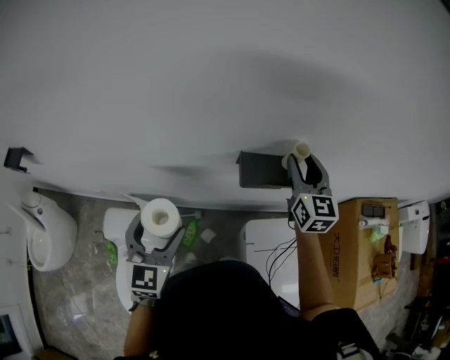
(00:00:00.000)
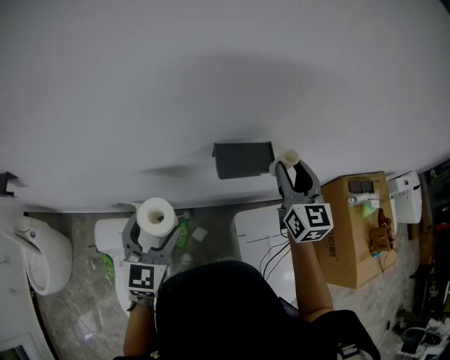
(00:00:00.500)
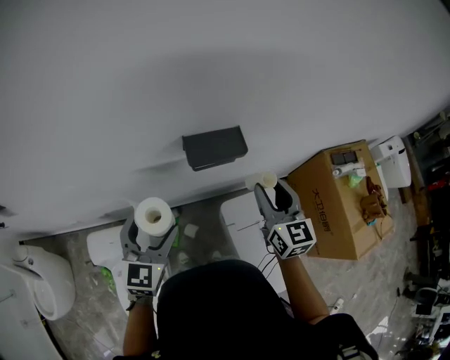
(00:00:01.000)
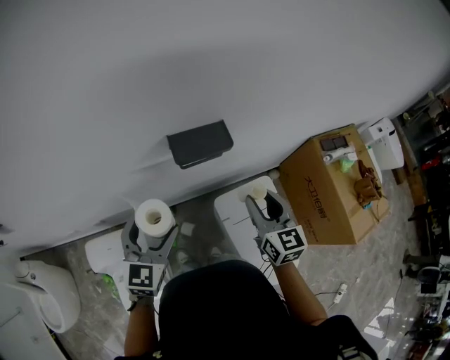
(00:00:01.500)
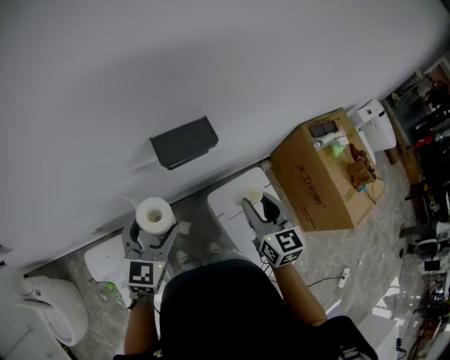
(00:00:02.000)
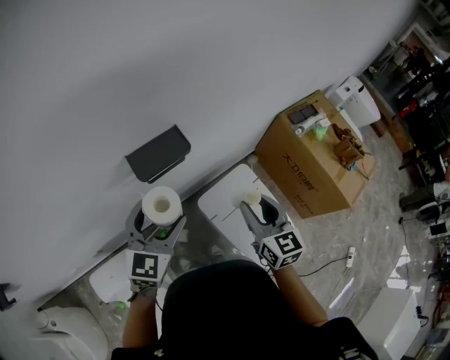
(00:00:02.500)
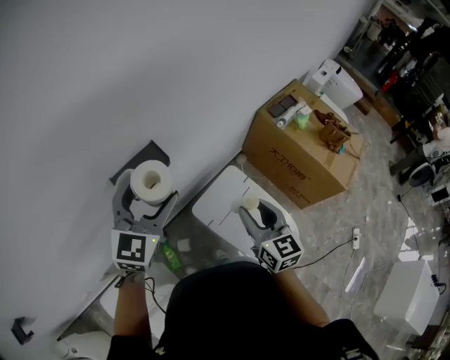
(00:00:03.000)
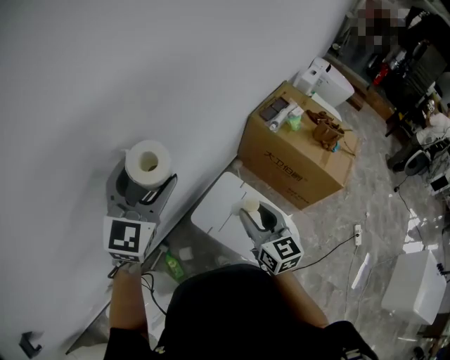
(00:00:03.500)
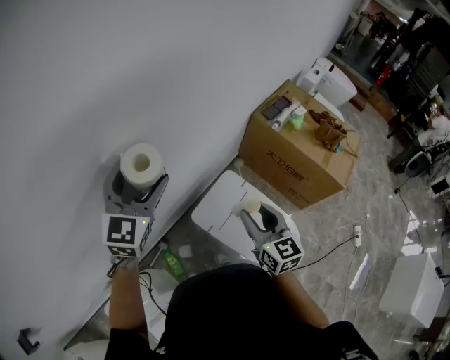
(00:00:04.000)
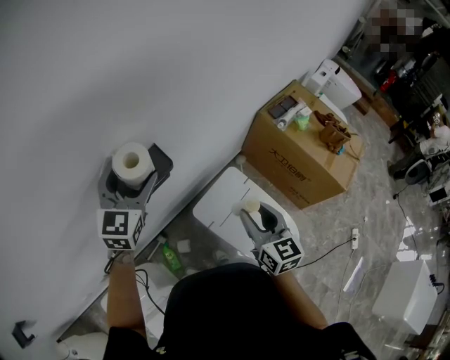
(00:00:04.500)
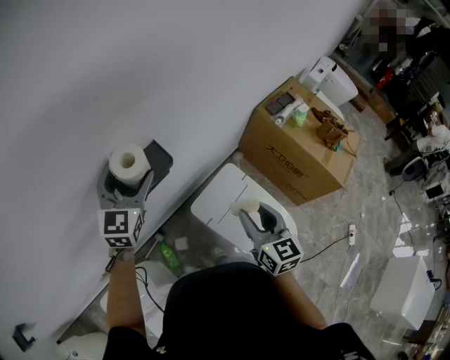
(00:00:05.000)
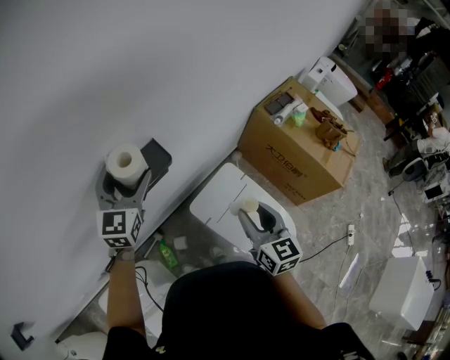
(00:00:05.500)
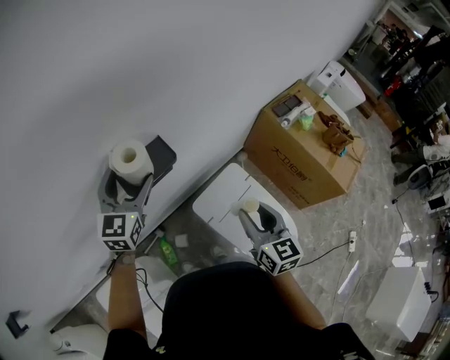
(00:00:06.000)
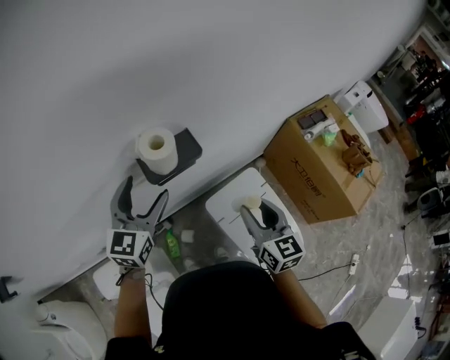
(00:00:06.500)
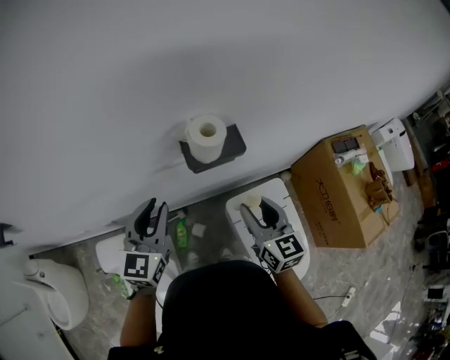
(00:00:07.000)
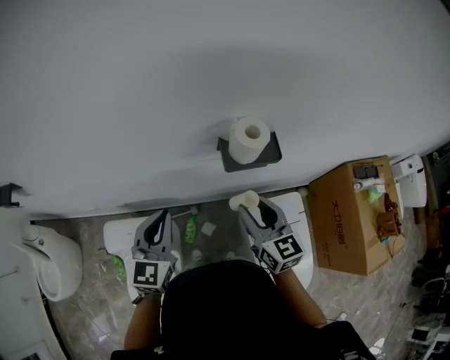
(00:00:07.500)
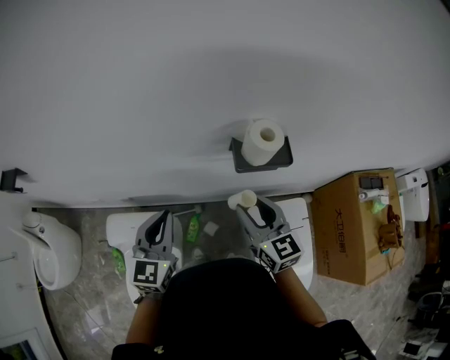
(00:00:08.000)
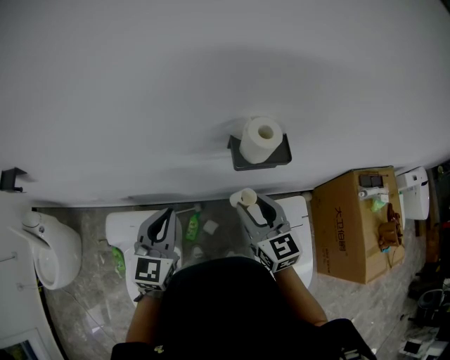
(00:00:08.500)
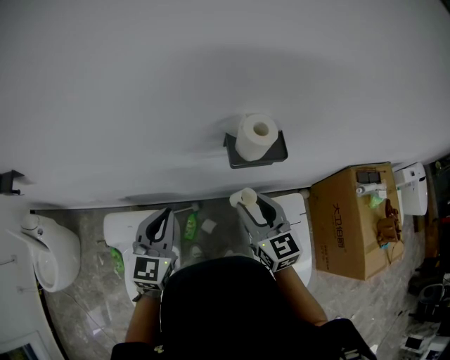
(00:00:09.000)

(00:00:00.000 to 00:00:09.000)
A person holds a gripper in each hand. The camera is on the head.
00:00:00.000 - 00:00:02.000: The right gripper is displaced backward and to the right by about 25 cm. Meanwhile the left gripper travels to the right by some 15 cm, and swivels some 30 degrees.
00:00:02.000 - 00:00:04.500: The right gripper travels to the right by some 10 cm, while the left gripper travels forward and upward by approximately 20 cm, and changes its angle by approximately 20 degrees.
00:00:04.500 - 00:00:07.000: The left gripper shifts by roughly 20 cm, rotates roughly 30 degrees, and closes, while the right gripper changes place by approximately 15 cm, and rotates roughly 30 degrees.
00:00:07.000 - 00:00:09.000: Both grippers move to the left, about 10 cm.

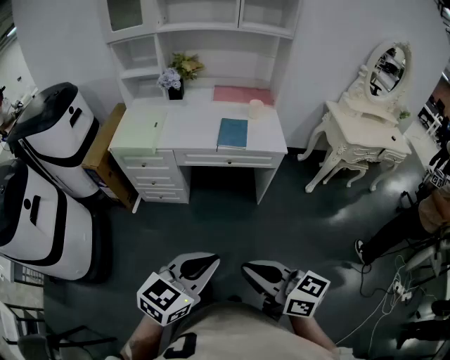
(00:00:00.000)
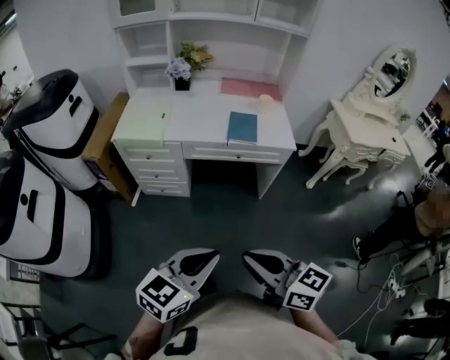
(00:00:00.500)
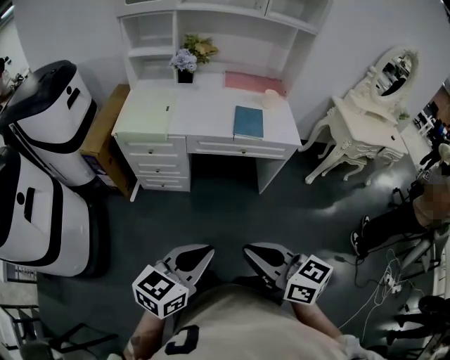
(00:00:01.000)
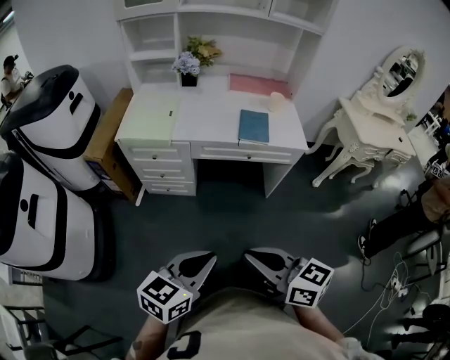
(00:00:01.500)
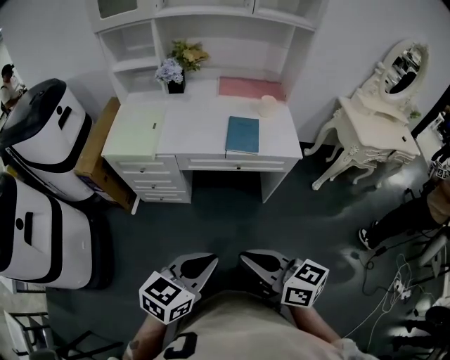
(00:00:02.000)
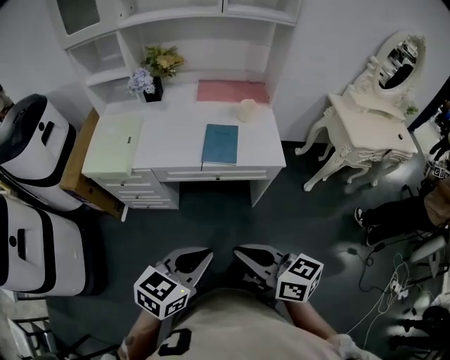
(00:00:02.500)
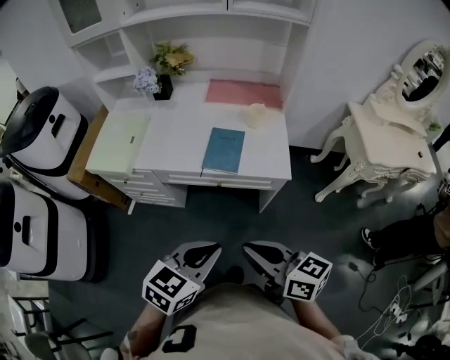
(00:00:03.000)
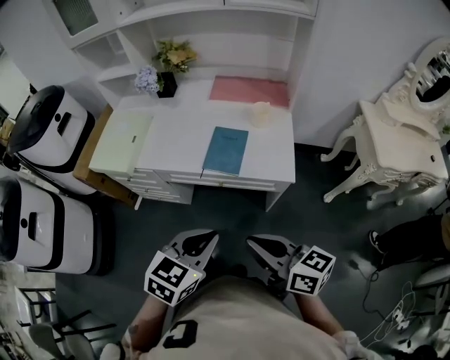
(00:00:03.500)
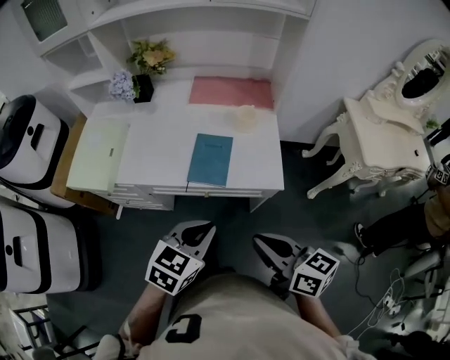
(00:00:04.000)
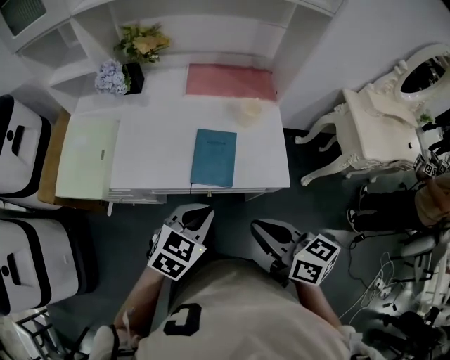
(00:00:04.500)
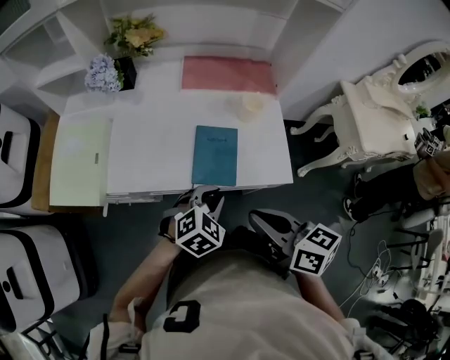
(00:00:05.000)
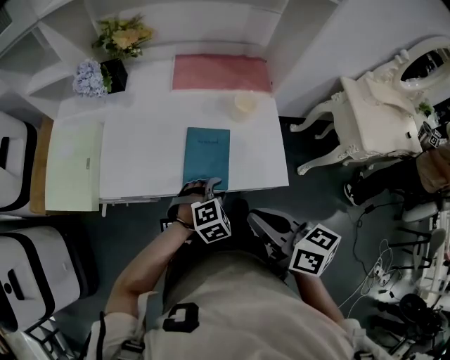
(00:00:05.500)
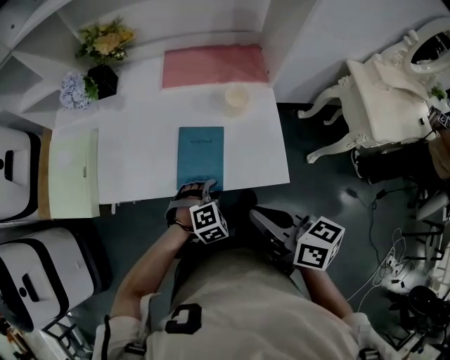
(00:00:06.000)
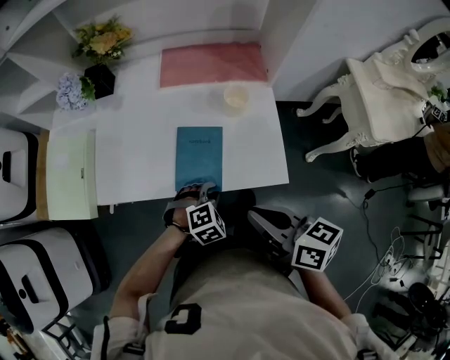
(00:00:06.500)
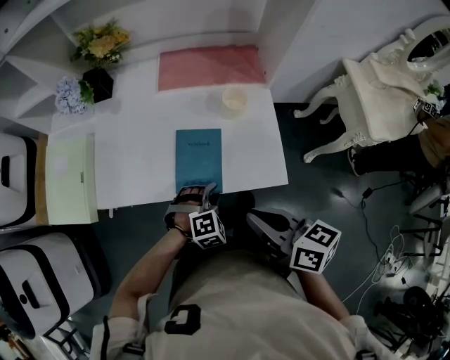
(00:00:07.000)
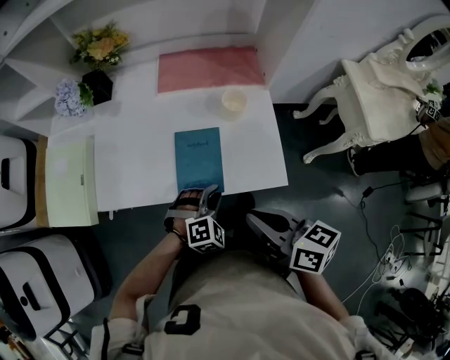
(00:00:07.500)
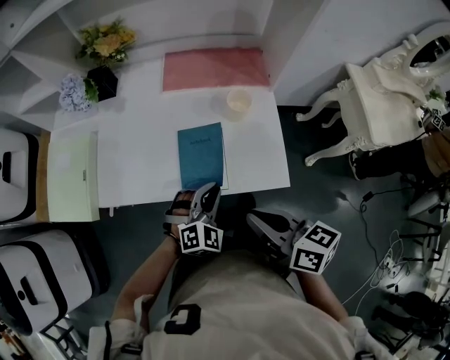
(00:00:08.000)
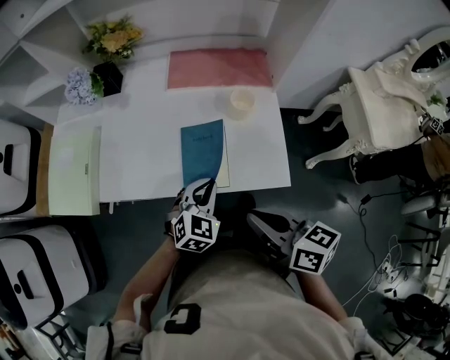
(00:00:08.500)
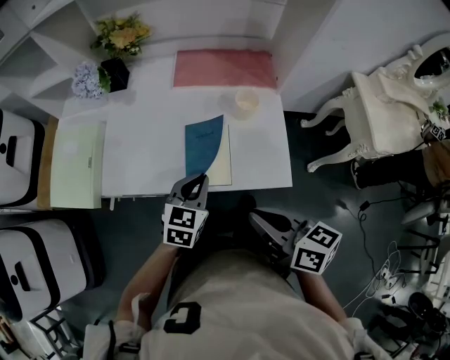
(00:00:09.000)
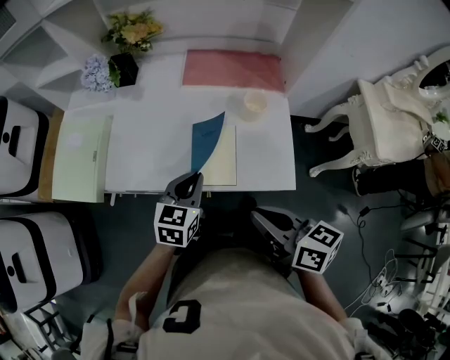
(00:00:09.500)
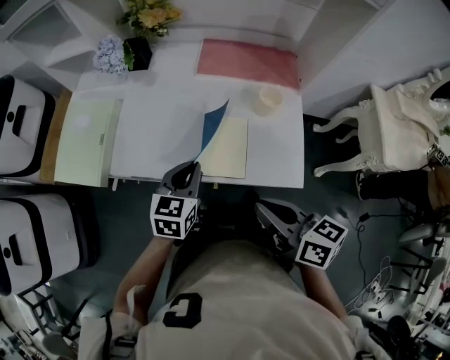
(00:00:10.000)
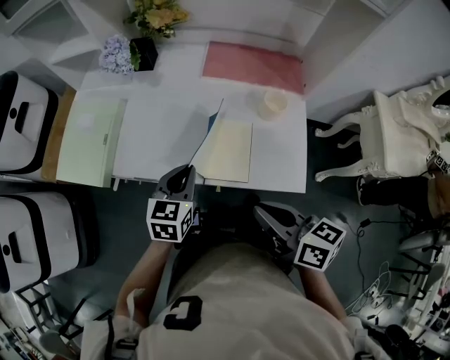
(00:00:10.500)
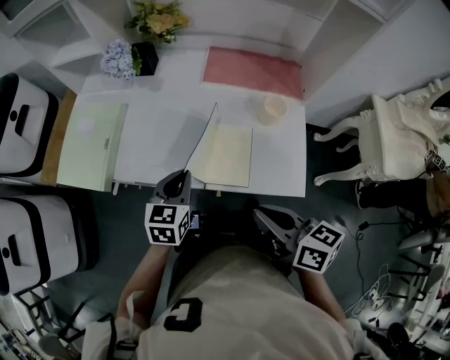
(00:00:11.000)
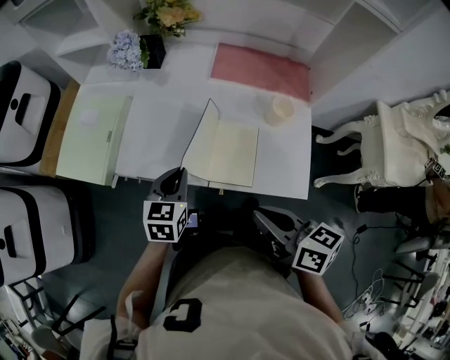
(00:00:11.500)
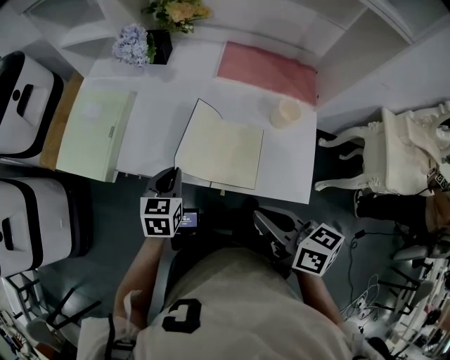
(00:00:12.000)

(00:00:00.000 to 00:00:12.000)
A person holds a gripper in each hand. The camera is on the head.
00:00:00.000 - 00:00:02.000: The right gripper heads forward, covering approximately 15 cm. Meanwhile the left gripper heads forward, downward and to the left, covering roughly 15 cm.
00:00:02.000 - 00:00:04.000: The grippers both shift forward and to the right by about 30 cm.
00:00:04.000 - 00:00:06.000: The left gripper heads downward and forward, covering approximately 25 cm, rolls clockwise, seen from behind, by approximately 50 degrees, and opens up; the right gripper heads forward, covering some 15 cm.
00:00:06.000 - 00:00:08.000: The left gripper moves upward, approximately 10 cm, and changes its angle by about 30 degrees.
00:00:08.000 - 00:00:10.000: The left gripper shifts about 10 cm to the left, and rotates around the line of its fingers by about 50 degrees, counterclockwise from behind.
00:00:10.000 - 00:00:12.000: The left gripper goes approximately 10 cm to the left.

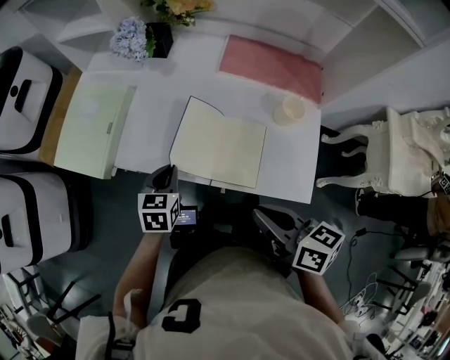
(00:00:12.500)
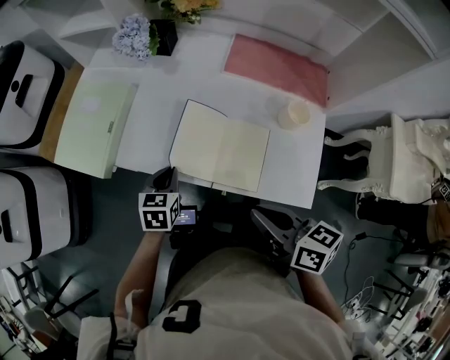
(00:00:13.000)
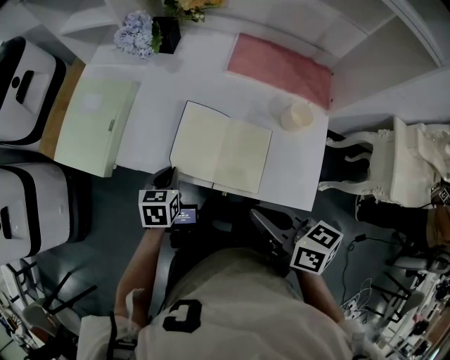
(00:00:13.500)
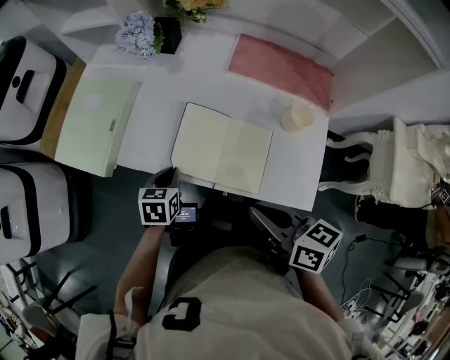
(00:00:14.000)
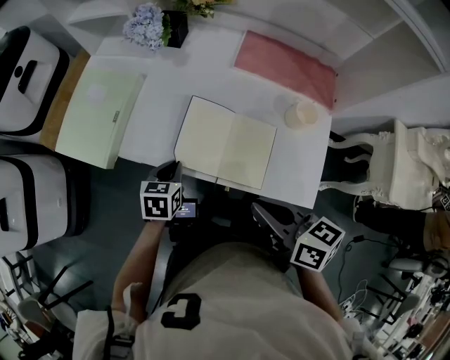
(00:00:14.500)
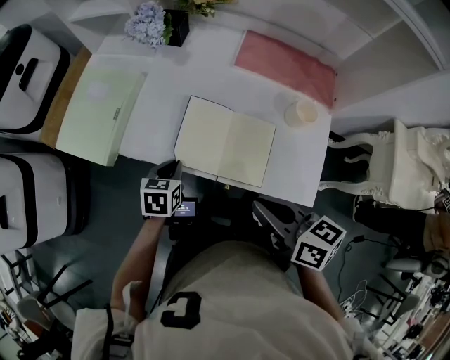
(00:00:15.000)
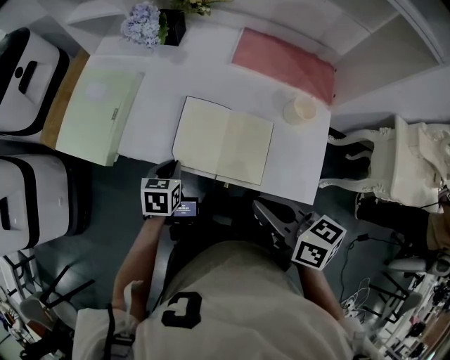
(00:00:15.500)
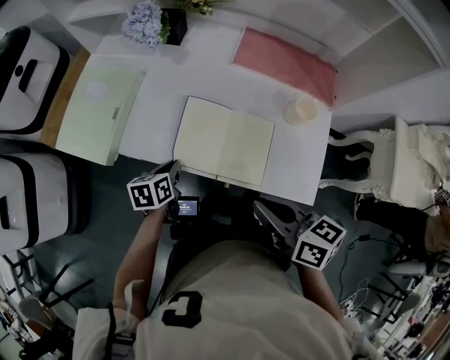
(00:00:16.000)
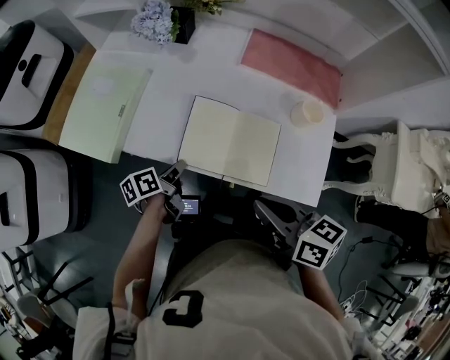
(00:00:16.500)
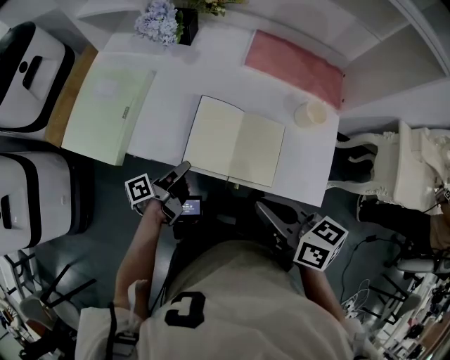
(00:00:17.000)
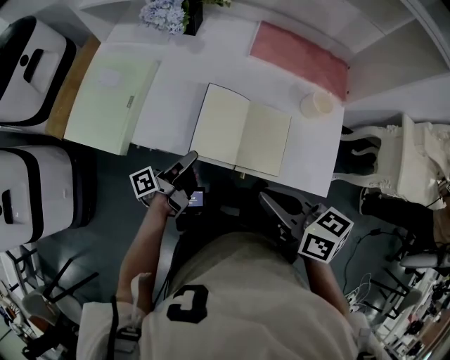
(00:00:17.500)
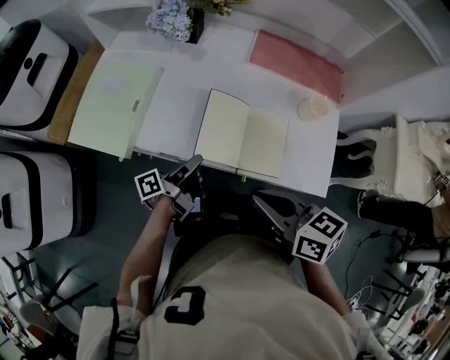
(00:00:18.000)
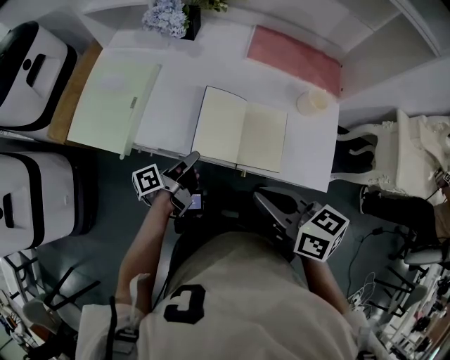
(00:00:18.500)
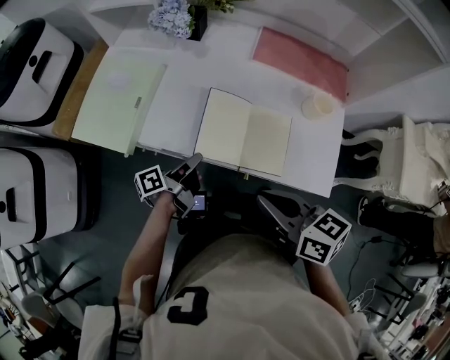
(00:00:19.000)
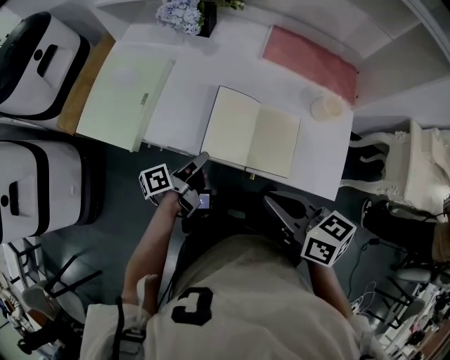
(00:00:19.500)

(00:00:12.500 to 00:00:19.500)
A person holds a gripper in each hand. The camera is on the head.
00:00:12.500 - 00:00:14.500: The grippers stay close to where they were, moving slightly.
00:00:14.500 - 00:00:16.000: The left gripper changes its angle by about 20 degrees.
00:00:16.000 - 00:00:17.500: The left gripper points its fingers roughly 50 degrees further upward.
00:00:17.500 - 00:00:19.500: There are only small adjustments of the grippers.
